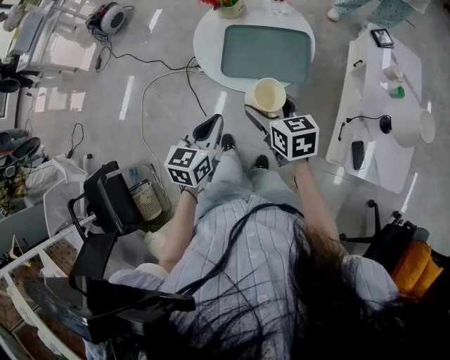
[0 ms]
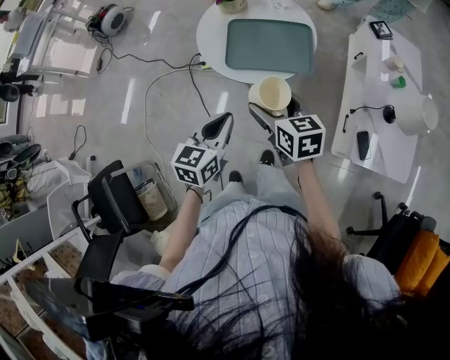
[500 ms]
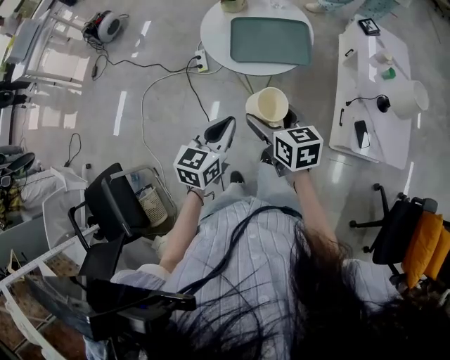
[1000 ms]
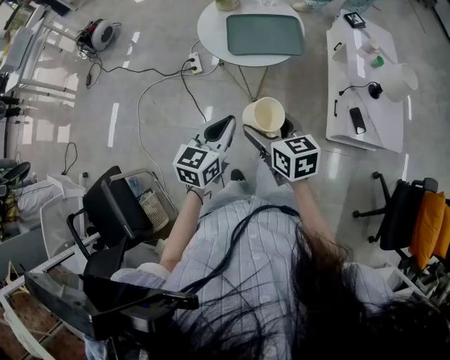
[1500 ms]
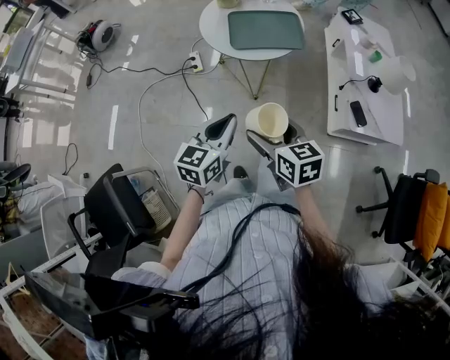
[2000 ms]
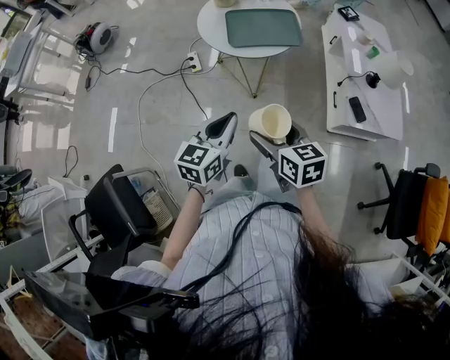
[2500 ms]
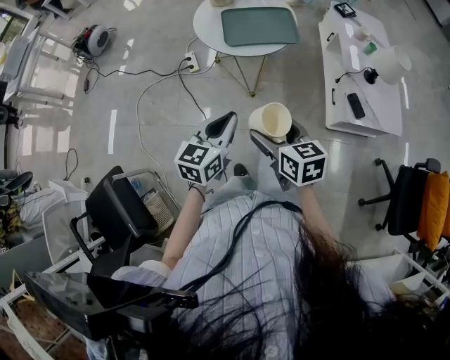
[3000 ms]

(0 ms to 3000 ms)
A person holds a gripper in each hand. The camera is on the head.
0 ms - 1500 ms: The right gripper moves backward and to the left, some 25 cm. The left gripper travels backward by about 15 cm.
1500 ms - 3000 ms: The right gripper heads backward, covering some 5 cm.

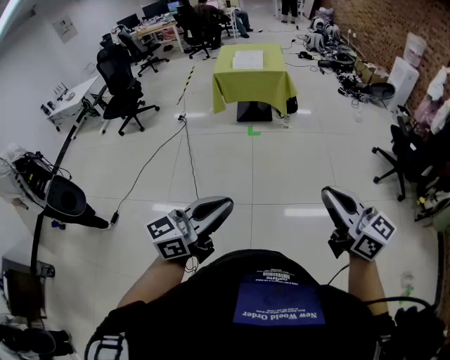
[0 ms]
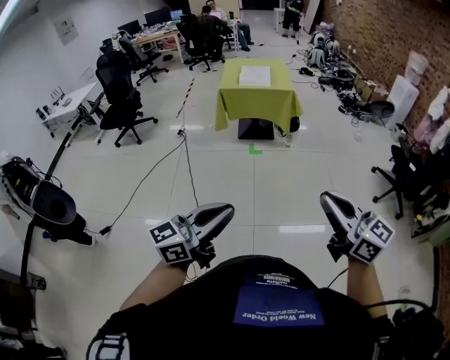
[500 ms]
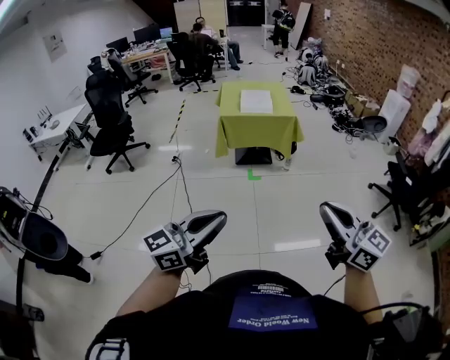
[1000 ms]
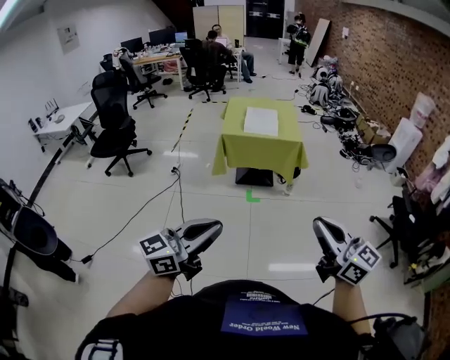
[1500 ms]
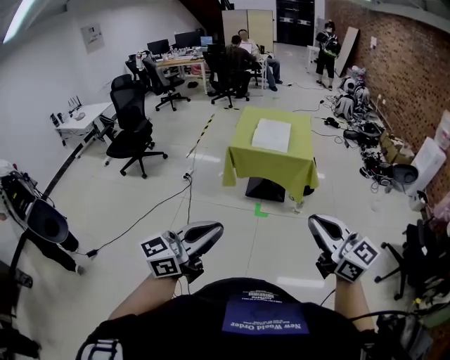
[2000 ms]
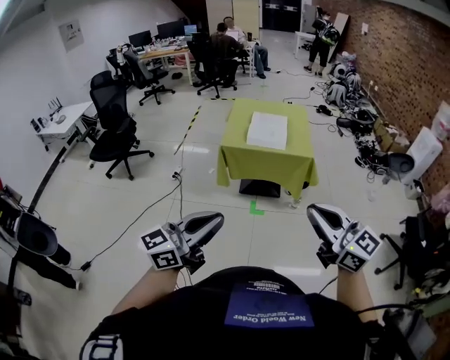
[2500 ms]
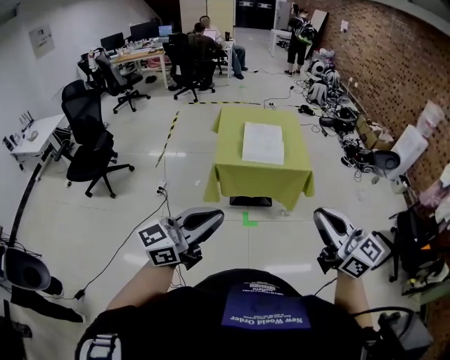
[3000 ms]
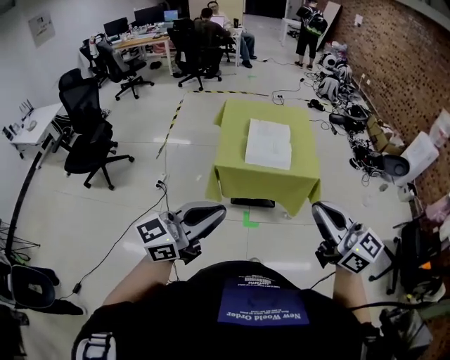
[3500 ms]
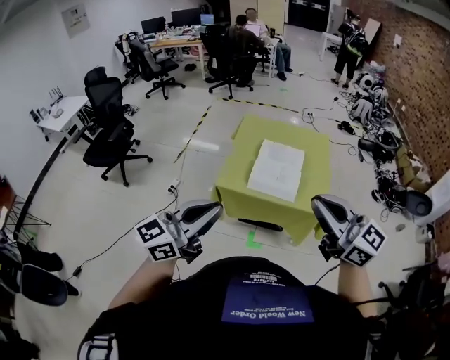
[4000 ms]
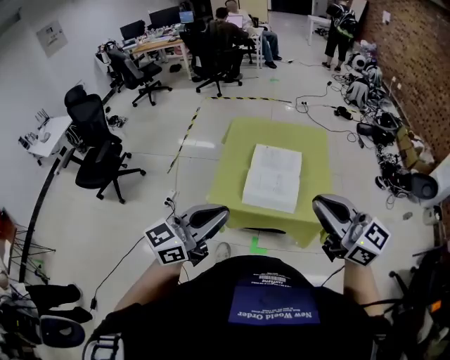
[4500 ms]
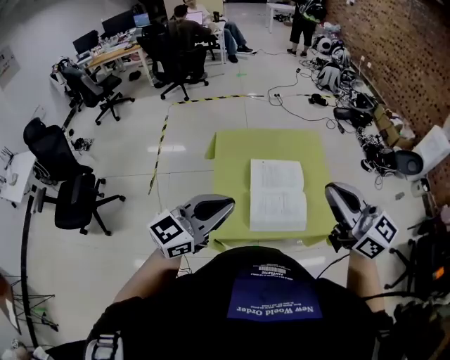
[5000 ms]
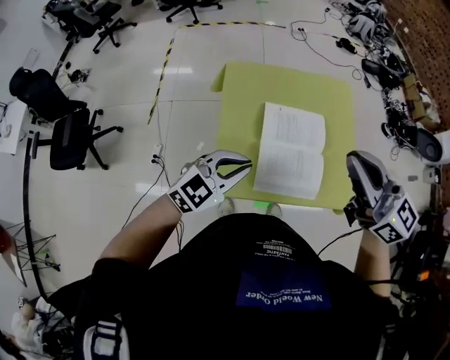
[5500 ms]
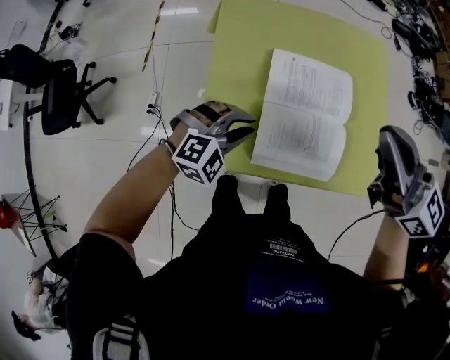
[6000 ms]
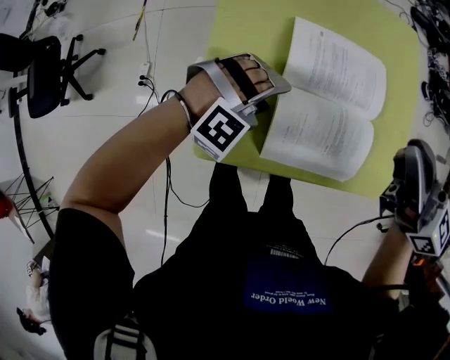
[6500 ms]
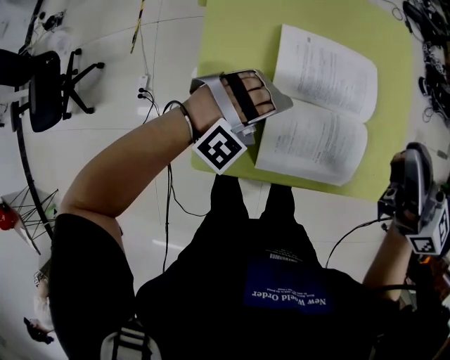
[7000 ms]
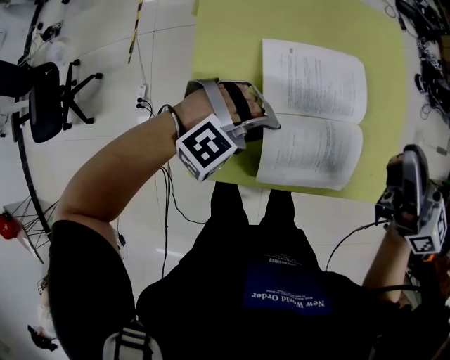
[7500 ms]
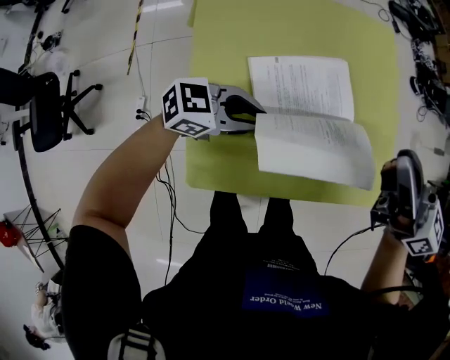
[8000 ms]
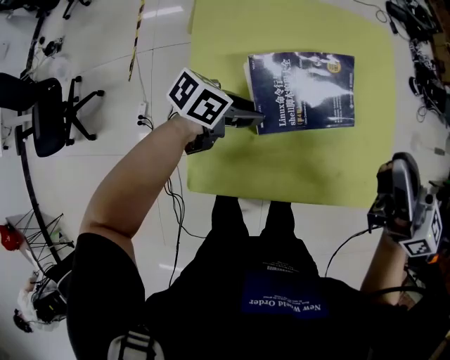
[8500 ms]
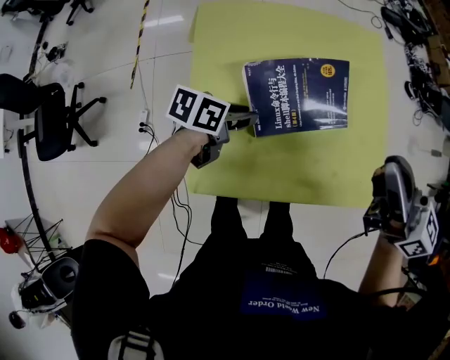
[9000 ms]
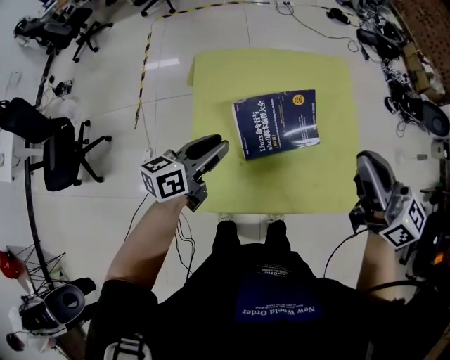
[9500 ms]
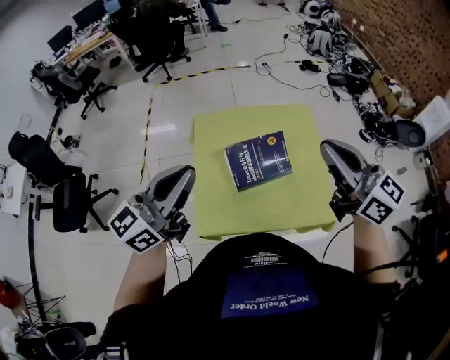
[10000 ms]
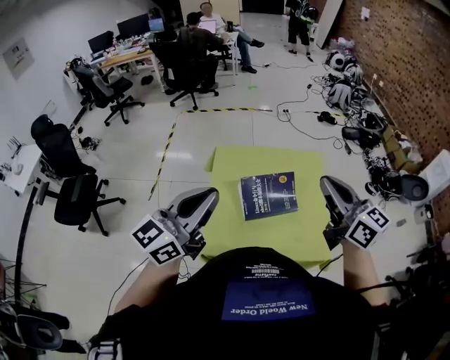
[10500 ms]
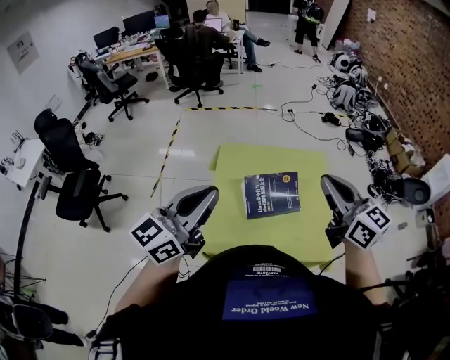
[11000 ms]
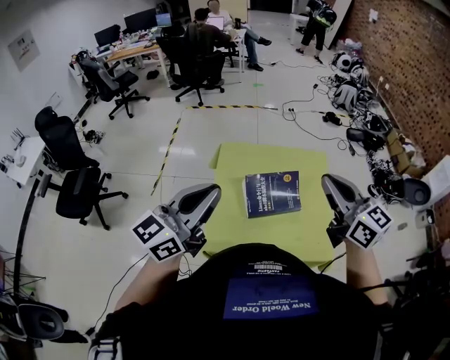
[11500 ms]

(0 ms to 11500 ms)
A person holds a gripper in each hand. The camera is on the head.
0 ms - 2000 ms: The pair of grippers is taken forward, some 50 cm.
2000 ms - 4000 ms: Both grippers are carried forward, about 50 cm.
4000 ms - 6000 ms: The pair of grippers is taken forward, some 40 cm. The left gripper is displaced downward by some 35 cm, and angles its fingers downward, by approximately 50 degrees.
6000 ms - 7500 ms: The right gripper travels to the right and downward by about 10 cm, while the left gripper goes roughly 5 cm to the right, rotates about 40 degrees, and opens, then closes again.
7500 ms - 9500 ms: The left gripper shifts approximately 10 cm upward, and twists roughly 100 degrees counterclockwise, seen from behind; the right gripper travels upward by roughly 5 cm.
9500 ms - 11500 ms: The right gripper is displaced upward by some 10 cm; the left gripper moves upward and backward, about 30 cm, rotates approximately 40 degrees, and closes its fingers.

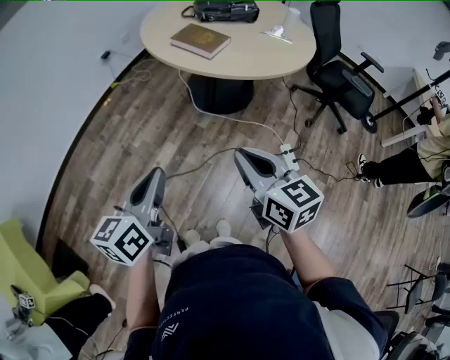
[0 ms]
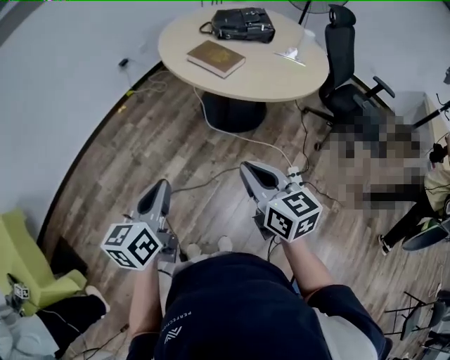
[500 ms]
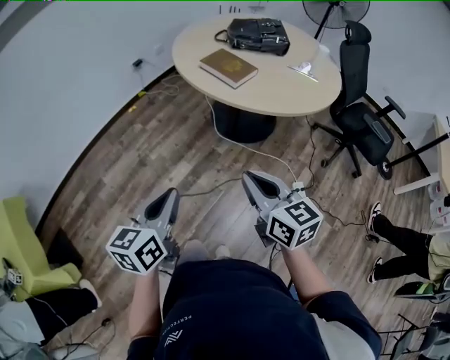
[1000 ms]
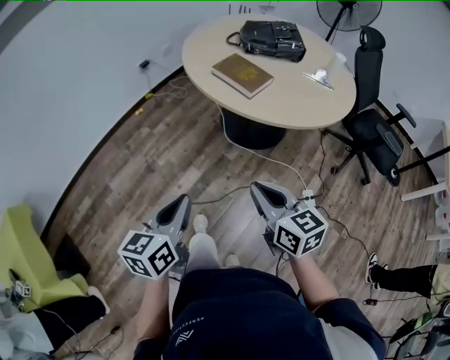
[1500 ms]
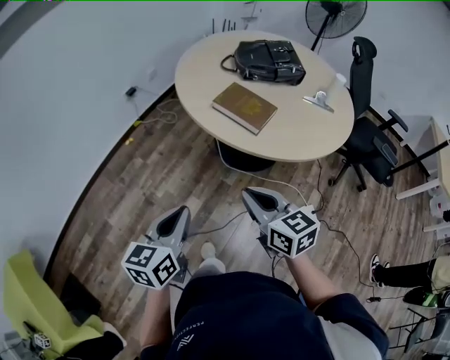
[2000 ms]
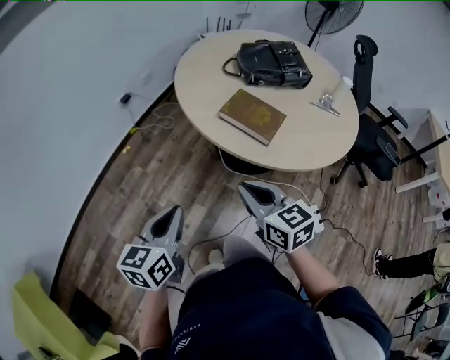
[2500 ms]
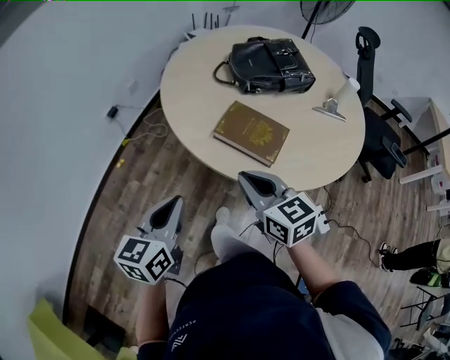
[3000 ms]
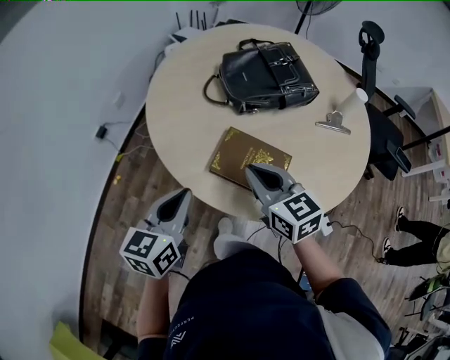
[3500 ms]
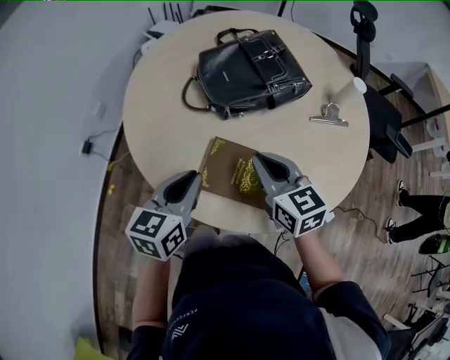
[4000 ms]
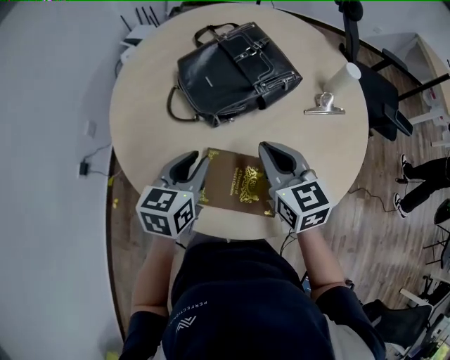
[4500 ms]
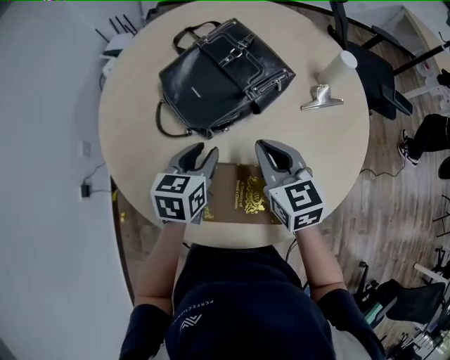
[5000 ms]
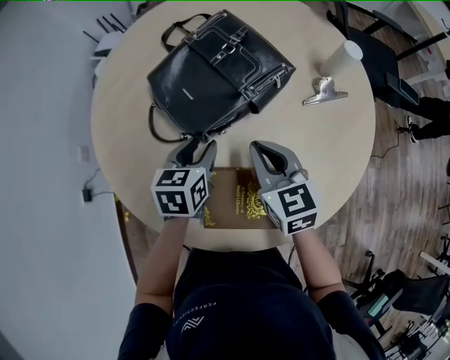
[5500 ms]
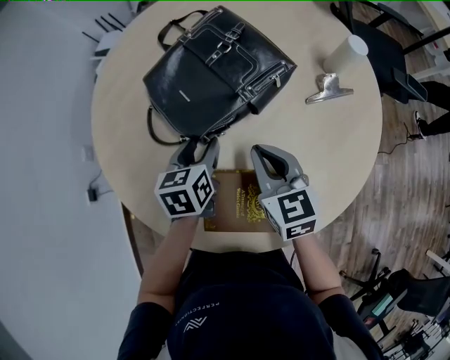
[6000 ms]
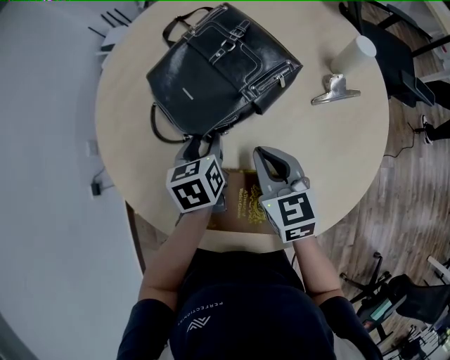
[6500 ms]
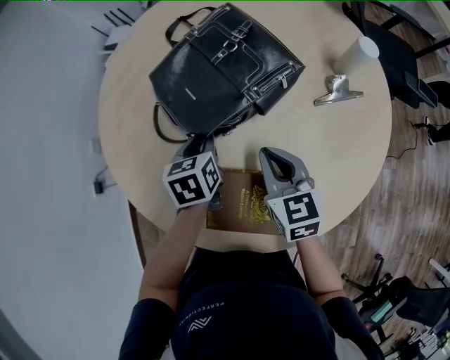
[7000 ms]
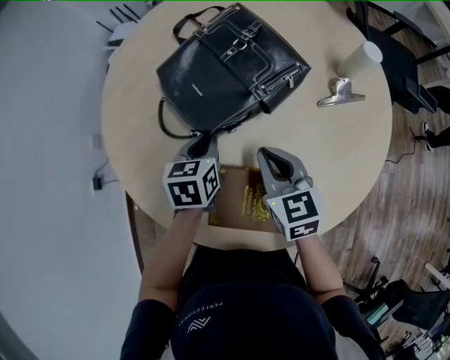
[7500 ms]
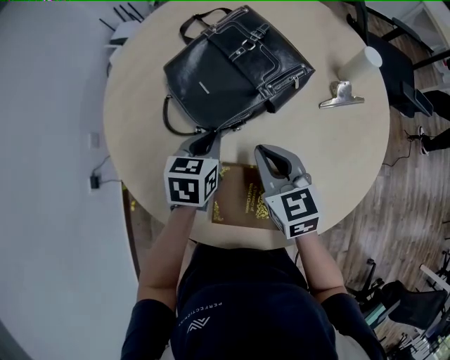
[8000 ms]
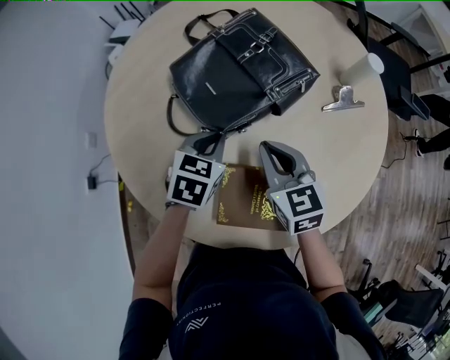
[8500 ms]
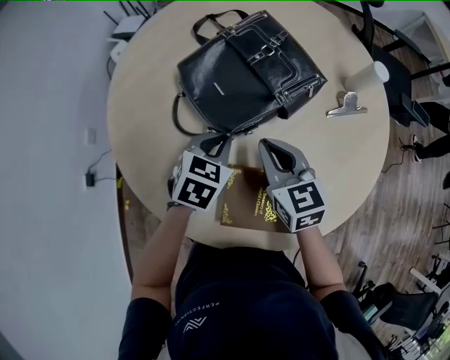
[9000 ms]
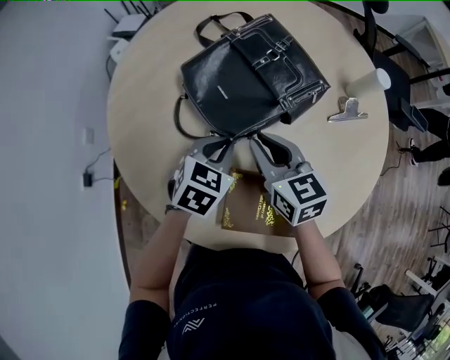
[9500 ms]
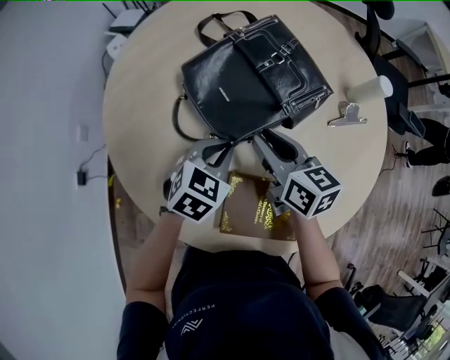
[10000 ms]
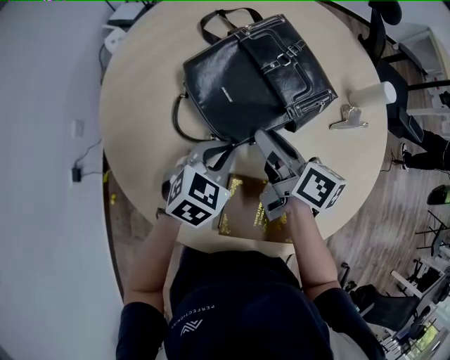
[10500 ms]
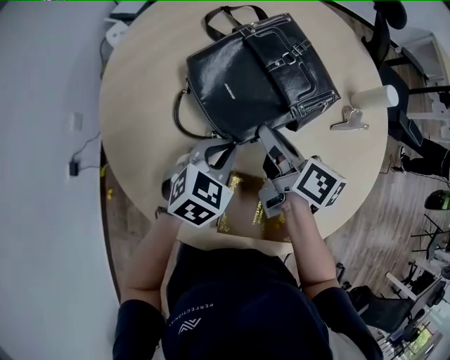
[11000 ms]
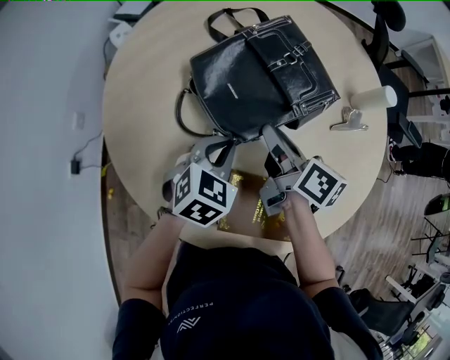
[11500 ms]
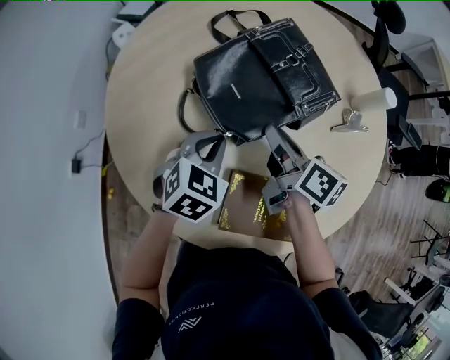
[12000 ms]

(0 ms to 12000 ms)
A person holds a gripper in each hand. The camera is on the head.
0 ms - 2000 ms: Both grippers travel together forward, roughly 20 cm.
2000 ms - 4000 ms: The two grippers travel together, forward, roughly 40 cm. The left gripper rotates about 30 degrees. Meanwhile the right gripper swivels about 20 degrees.
4000 ms - 6000 ms: The right gripper travels forward by approximately 10 cm, and changes its angle by some 20 degrees, while the left gripper moves forward and downward, about 20 cm, and opens.
6000 ms - 8000 ms: The left gripper closes.
8000 ms - 10000 ms: The left gripper changes its angle by about 30 degrees. Meanwhile the right gripper is displaced forward by about 5 cm, rotates approximately 20 degrees, and opens its fingers.
10000 ms - 12000 ms: The right gripper swivels roughly 30 degrees.
